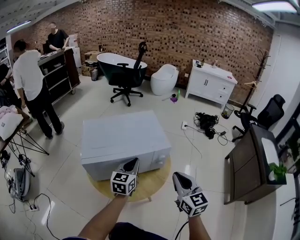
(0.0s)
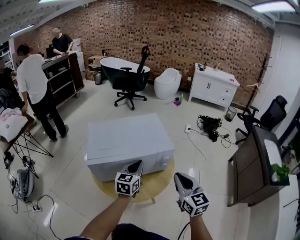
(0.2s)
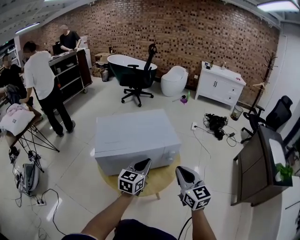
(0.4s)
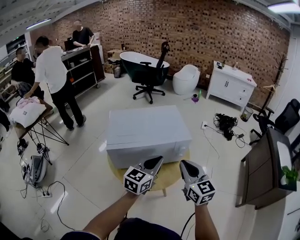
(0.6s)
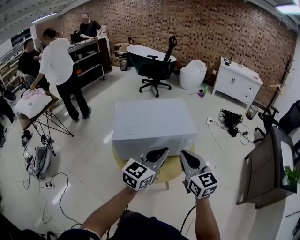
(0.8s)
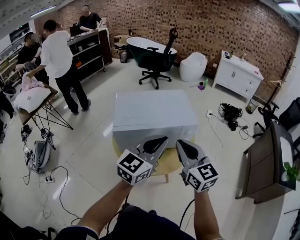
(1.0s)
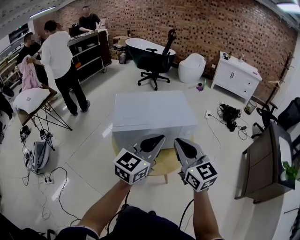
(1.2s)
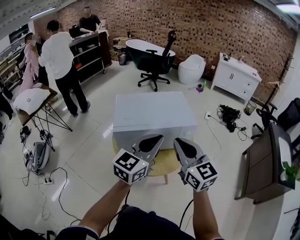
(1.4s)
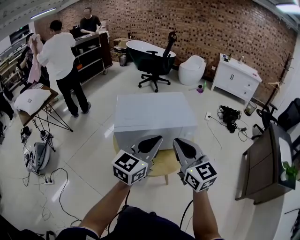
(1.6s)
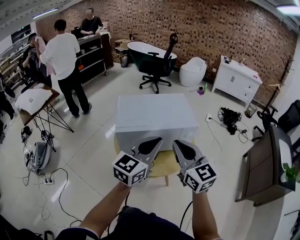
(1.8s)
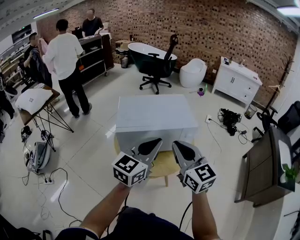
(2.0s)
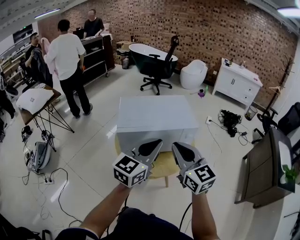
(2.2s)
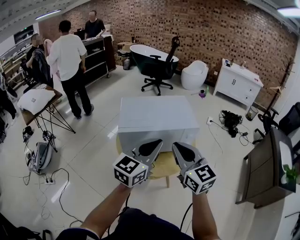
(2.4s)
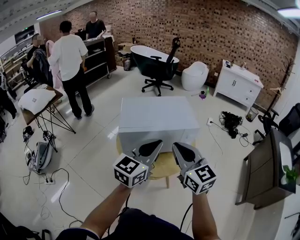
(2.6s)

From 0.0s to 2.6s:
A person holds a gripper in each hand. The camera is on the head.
From 0.0s to 1.2s: The left gripper heads upward and backward, covering approximately 20 cm; the right gripper is displaced to the left and upward by approximately 15 cm.
From 1.2s to 2.6s: The grippers move only a little.

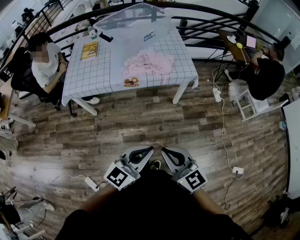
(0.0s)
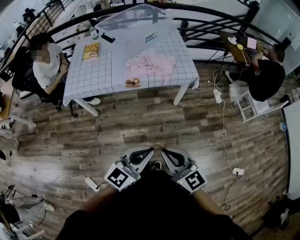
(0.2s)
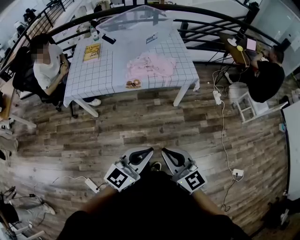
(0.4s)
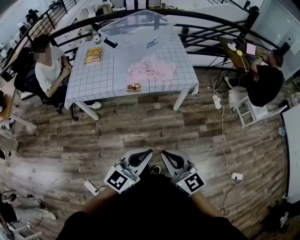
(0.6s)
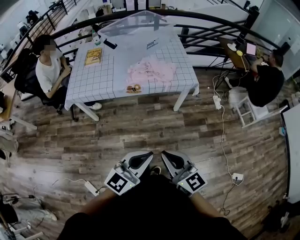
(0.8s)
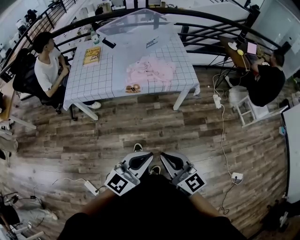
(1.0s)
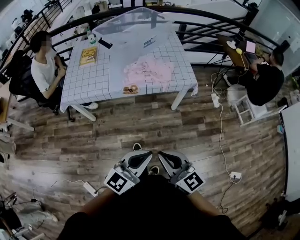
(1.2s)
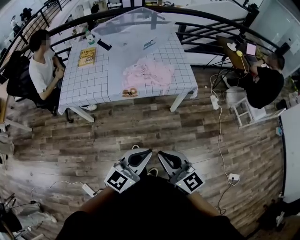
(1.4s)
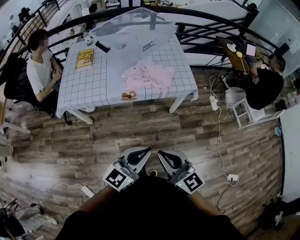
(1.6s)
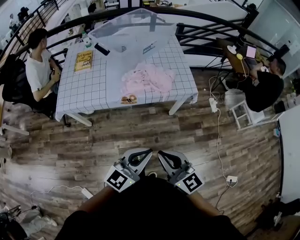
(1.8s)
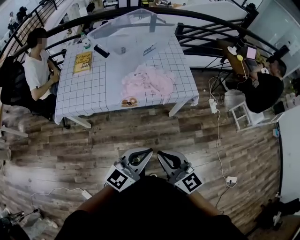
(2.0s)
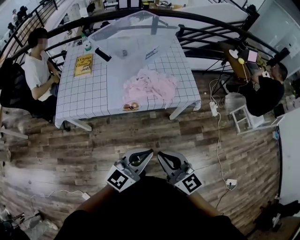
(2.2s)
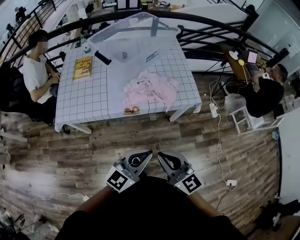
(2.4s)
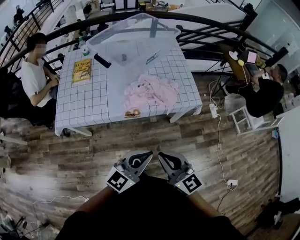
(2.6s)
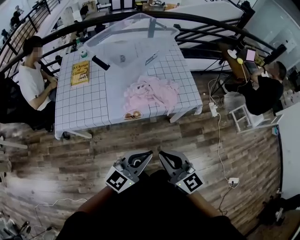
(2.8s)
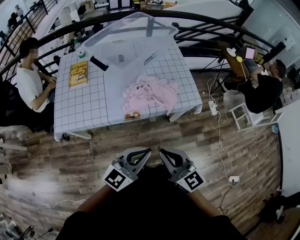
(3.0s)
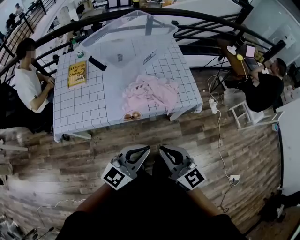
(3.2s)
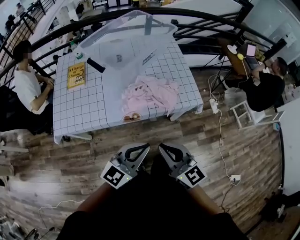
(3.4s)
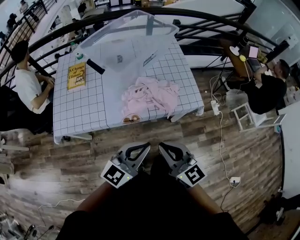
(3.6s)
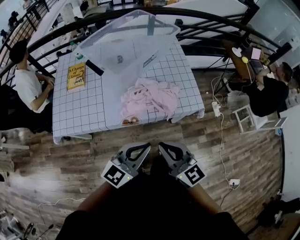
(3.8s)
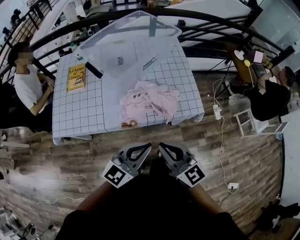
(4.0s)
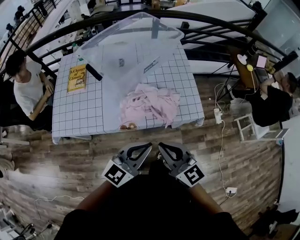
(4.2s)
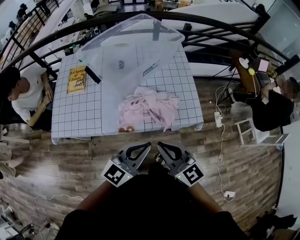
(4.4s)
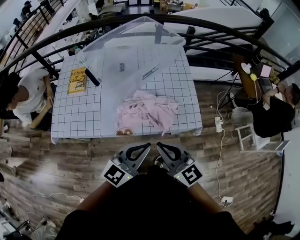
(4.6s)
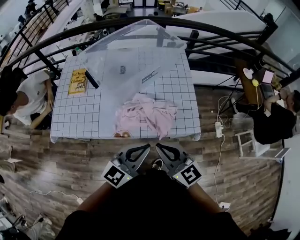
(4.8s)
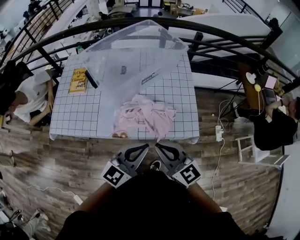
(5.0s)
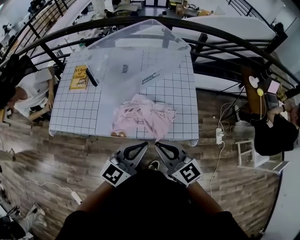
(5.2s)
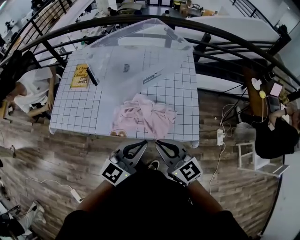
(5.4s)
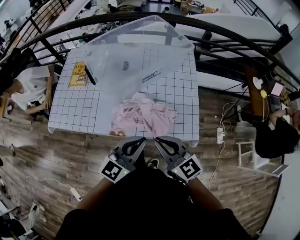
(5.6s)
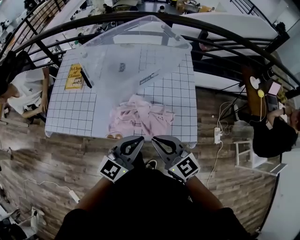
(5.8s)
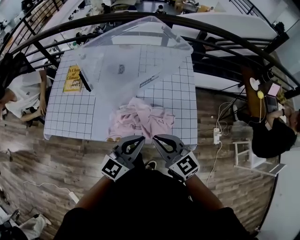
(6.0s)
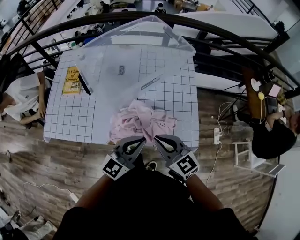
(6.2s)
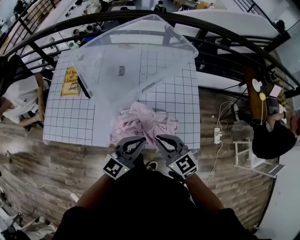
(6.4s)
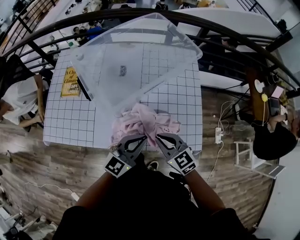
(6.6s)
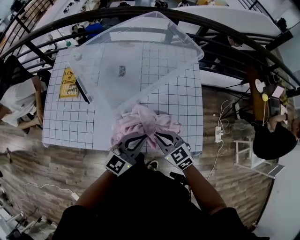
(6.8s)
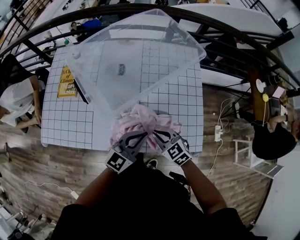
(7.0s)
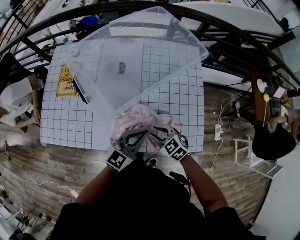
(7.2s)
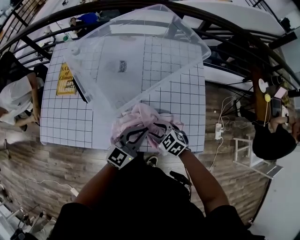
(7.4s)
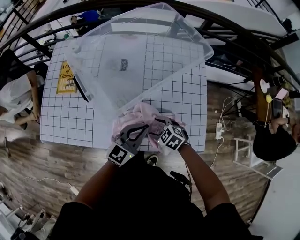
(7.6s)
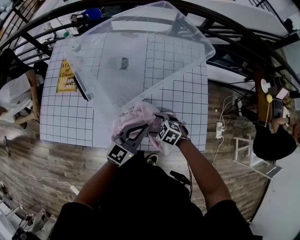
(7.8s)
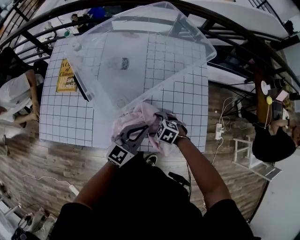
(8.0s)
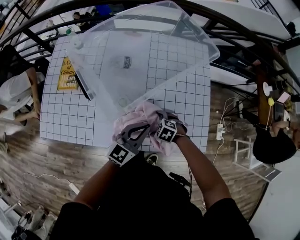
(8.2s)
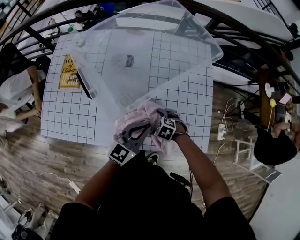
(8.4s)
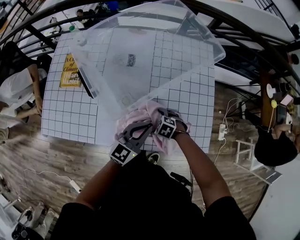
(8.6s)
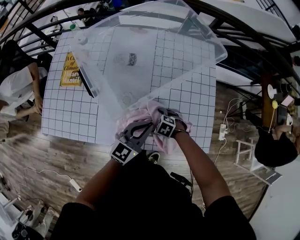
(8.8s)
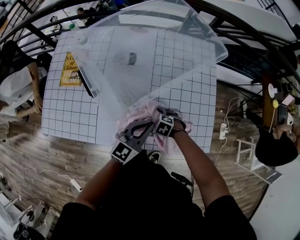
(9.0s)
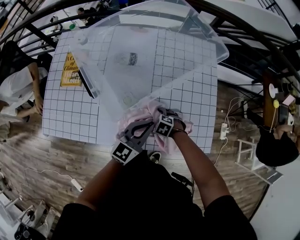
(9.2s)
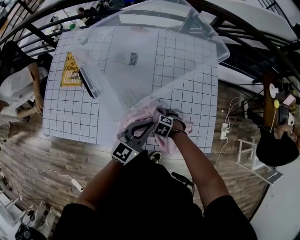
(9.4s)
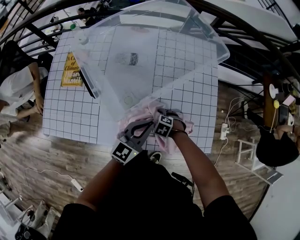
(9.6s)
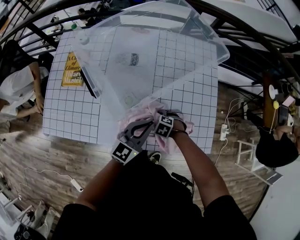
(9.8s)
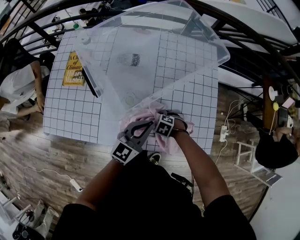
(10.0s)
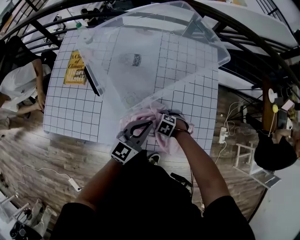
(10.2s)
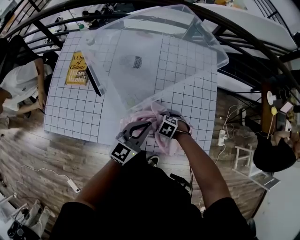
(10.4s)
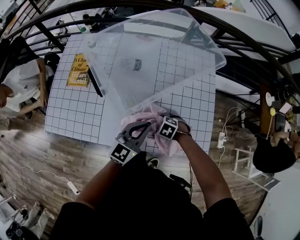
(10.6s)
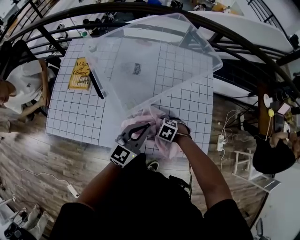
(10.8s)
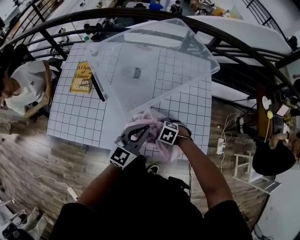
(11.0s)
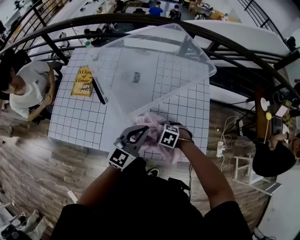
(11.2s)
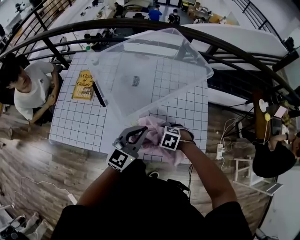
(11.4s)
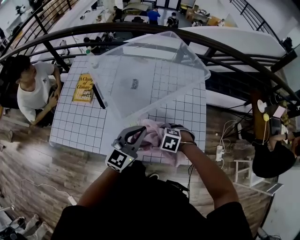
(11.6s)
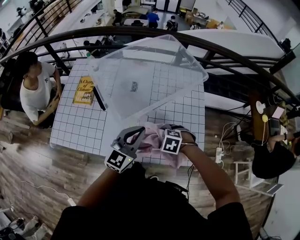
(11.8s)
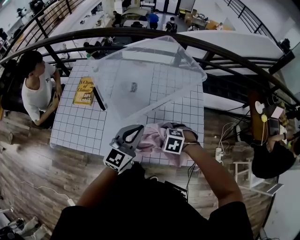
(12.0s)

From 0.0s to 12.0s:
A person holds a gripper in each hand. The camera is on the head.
From 0.0s to 1.6s: Both grippers move forward, about 10 cm.
From 1.6s to 3.0s: The grippers both shift forward and to the left by approximately 20 cm.
From 3.0s to 4.4s: Both grippers travel together forward, about 15 cm.
From 4.4s to 6.0s: Both grippers move forward and to the right, some 15 cm.
From 6.0s to 7.6s: The right gripper shifts roughly 30 cm downward and forward, points its fingers approximately 40 degrees further downward, and opens up. The left gripper heads forward and downward, covering some 20 cm.
From 7.6s to 9.0s: The right gripper heads downward, covering about 10 cm, and opens.
From 9.0s to 10.4s: The grippers move only a little.
From 10.4s to 12.0s: The grippers both shift upward by about 15 cm.

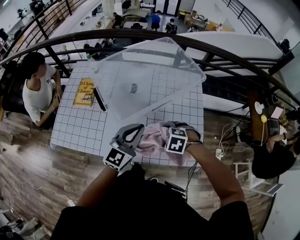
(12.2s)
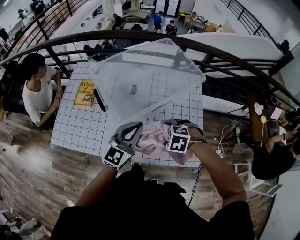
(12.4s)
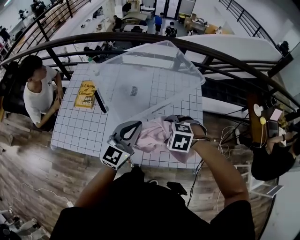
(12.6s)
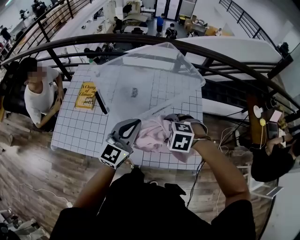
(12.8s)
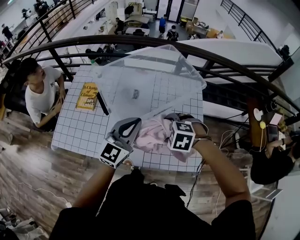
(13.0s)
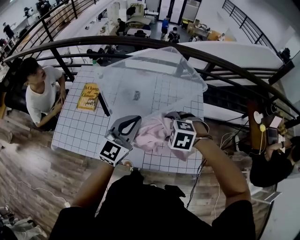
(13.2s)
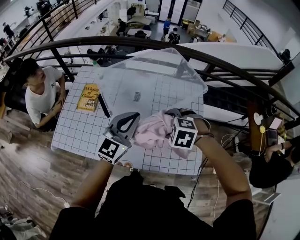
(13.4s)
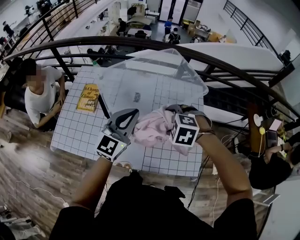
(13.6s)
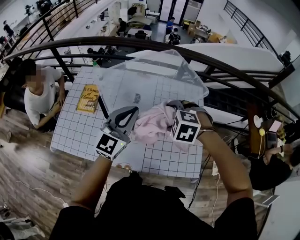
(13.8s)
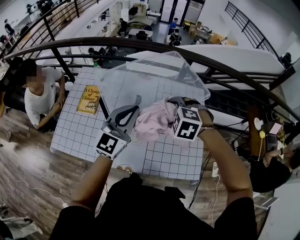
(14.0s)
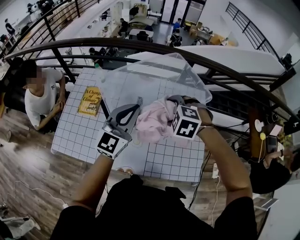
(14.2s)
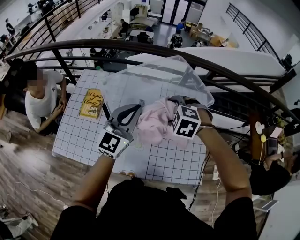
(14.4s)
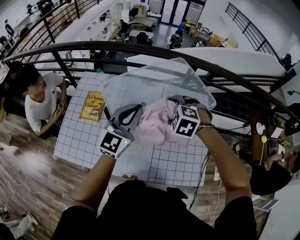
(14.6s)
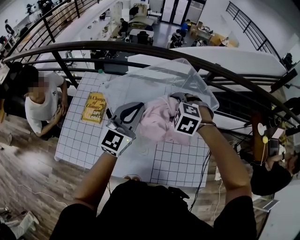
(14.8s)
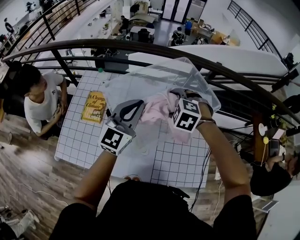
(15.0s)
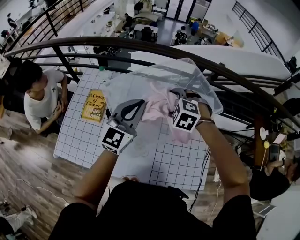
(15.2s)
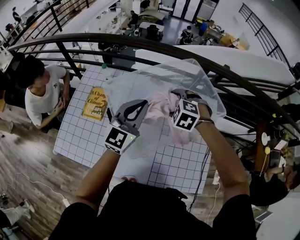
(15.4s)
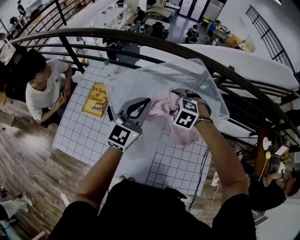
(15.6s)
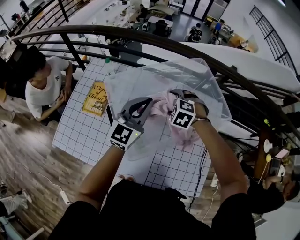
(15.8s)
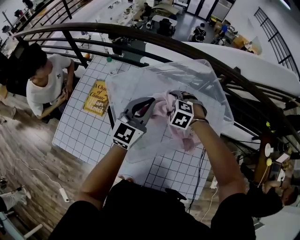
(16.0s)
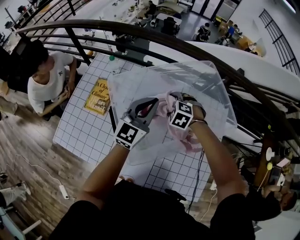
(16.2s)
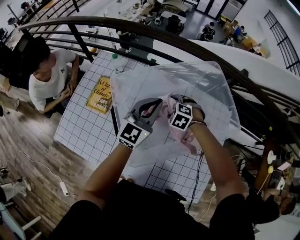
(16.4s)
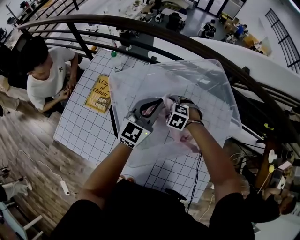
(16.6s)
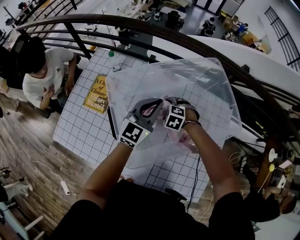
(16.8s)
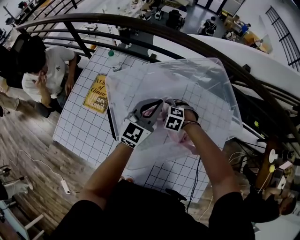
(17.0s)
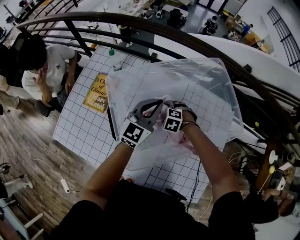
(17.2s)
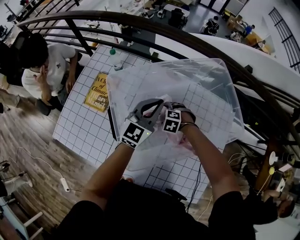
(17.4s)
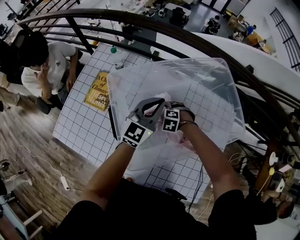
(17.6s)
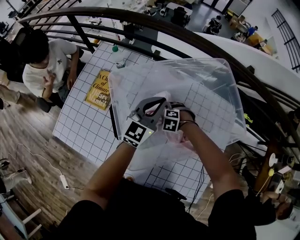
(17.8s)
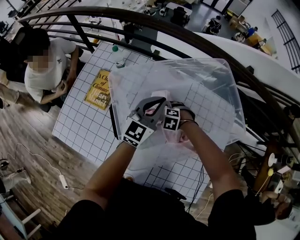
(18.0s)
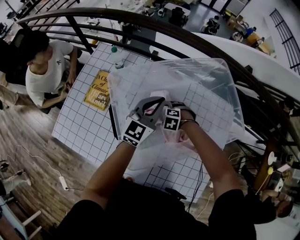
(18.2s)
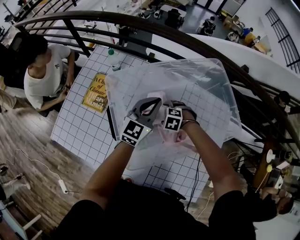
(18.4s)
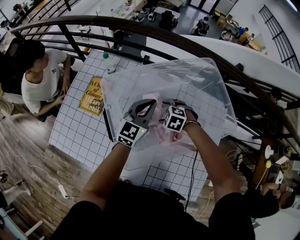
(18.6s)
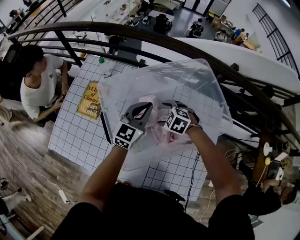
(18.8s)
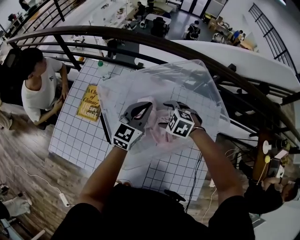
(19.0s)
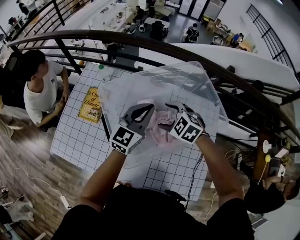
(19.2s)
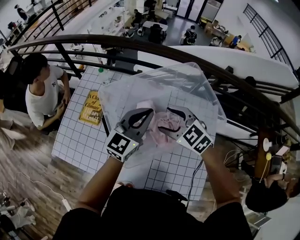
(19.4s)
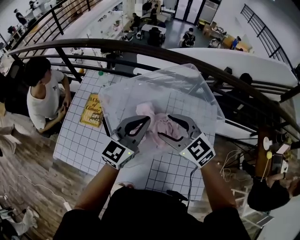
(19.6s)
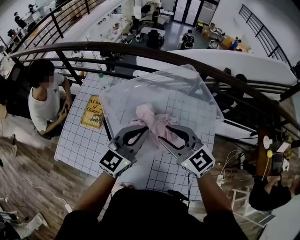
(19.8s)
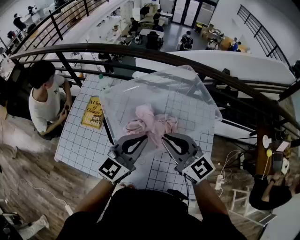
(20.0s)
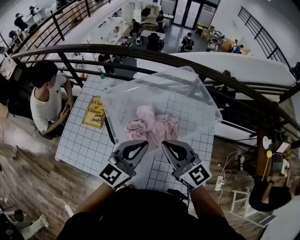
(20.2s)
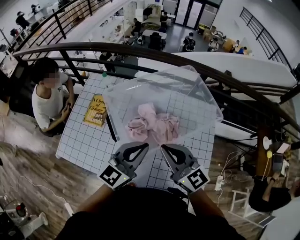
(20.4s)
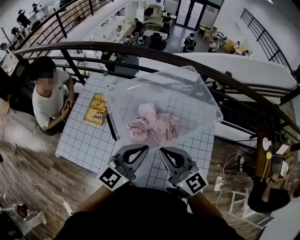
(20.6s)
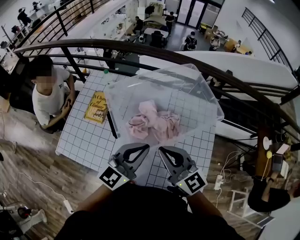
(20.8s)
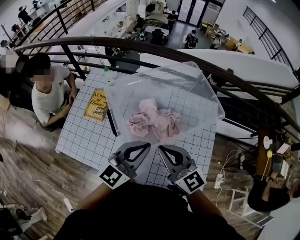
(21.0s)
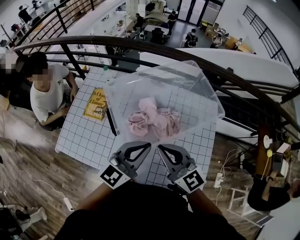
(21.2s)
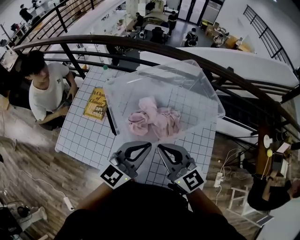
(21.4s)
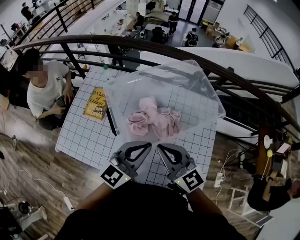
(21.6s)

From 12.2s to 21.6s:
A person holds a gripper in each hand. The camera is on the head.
From 12.2s to 13.8s: The left gripper changes place by roughly 15 cm; the right gripper moves upward, roughly 15 cm.
From 13.8s to 15.4s: The two grippers go roughly 15 cm forward.
From 15.4s to 17.0s: The left gripper moves downward and forward, some 15 cm, while the right gripper heads downward, covering roughly 20 cm.
From 17.0s to 18.4s: The grippers make only small movements.
From 18.4s to 20.0s: The right gripper travels upward by approximately 35 cm, points its fingers some 70 degrees further upward, and closes up. Meanwhile the left gripper shifts by about 25 cm.
From 20.0s to 21.6s: Both grippers move backward, some 5 cm.
